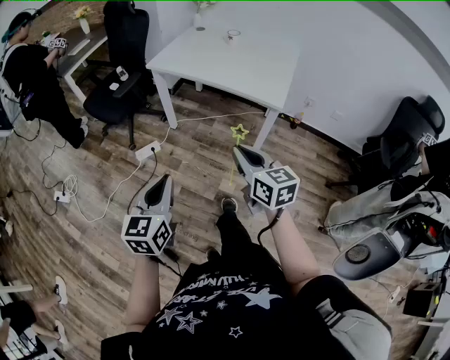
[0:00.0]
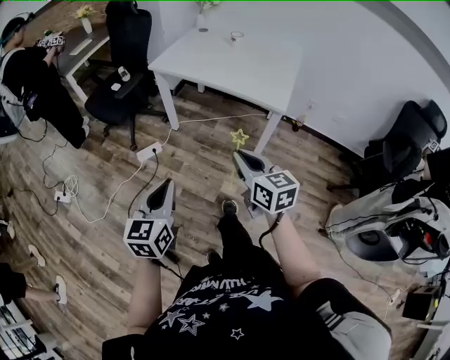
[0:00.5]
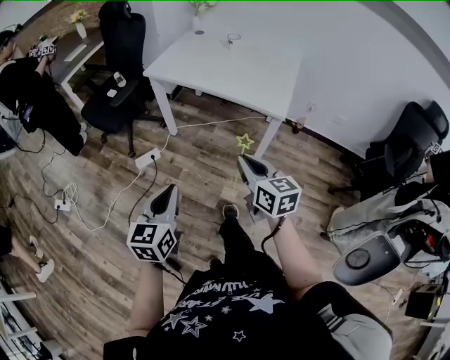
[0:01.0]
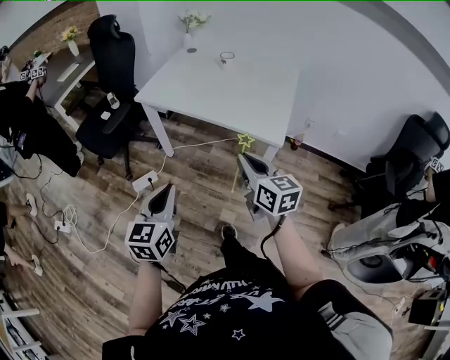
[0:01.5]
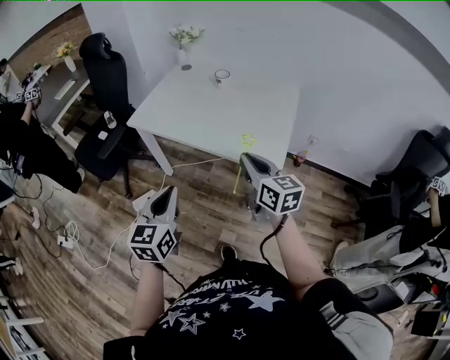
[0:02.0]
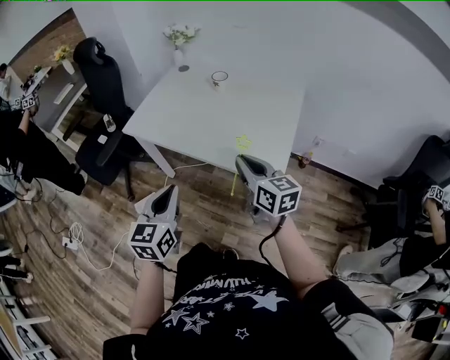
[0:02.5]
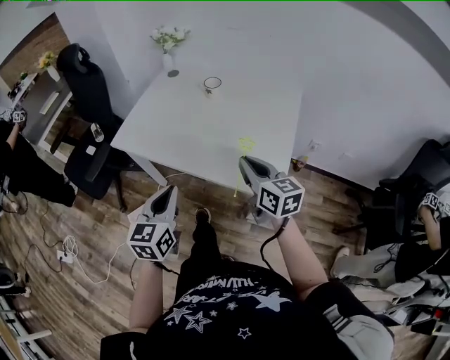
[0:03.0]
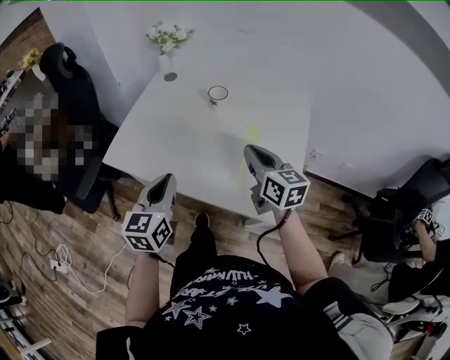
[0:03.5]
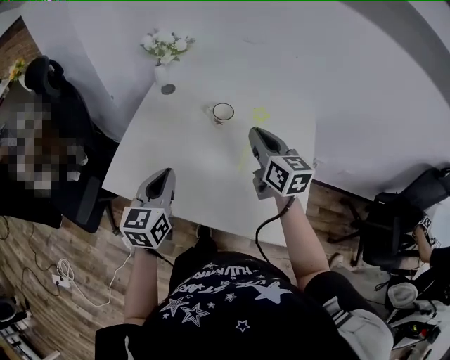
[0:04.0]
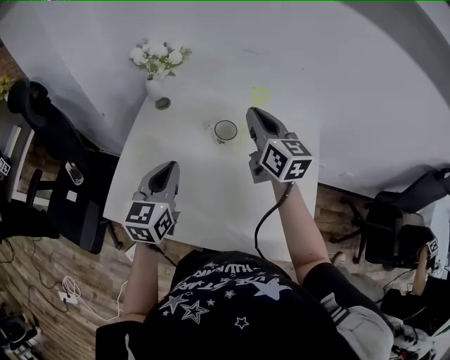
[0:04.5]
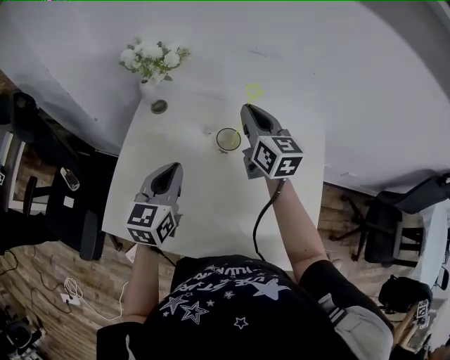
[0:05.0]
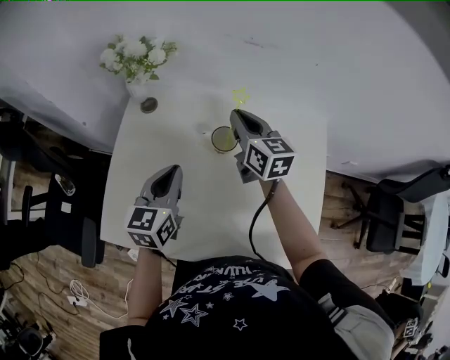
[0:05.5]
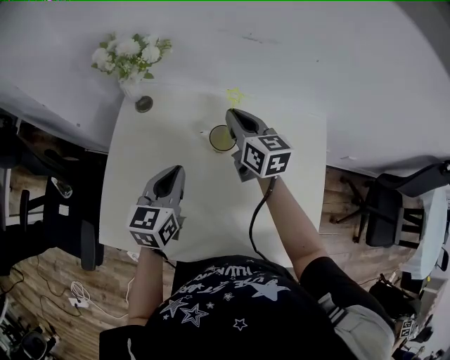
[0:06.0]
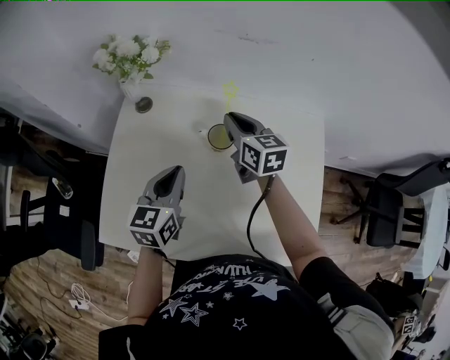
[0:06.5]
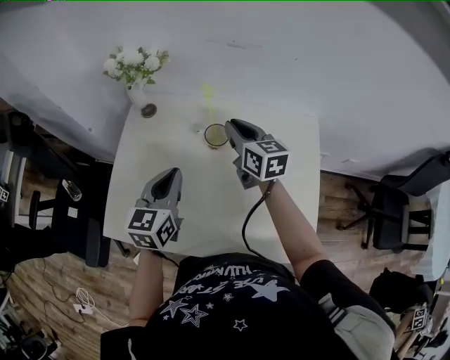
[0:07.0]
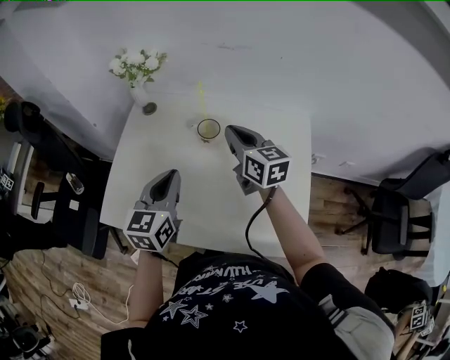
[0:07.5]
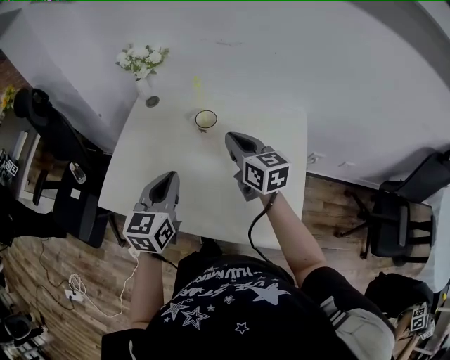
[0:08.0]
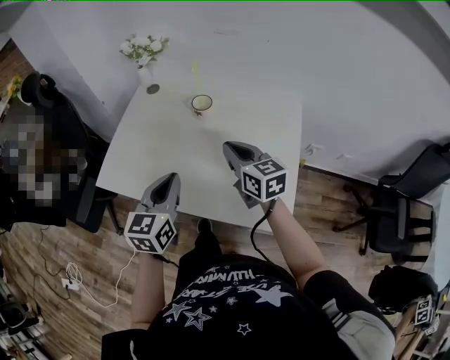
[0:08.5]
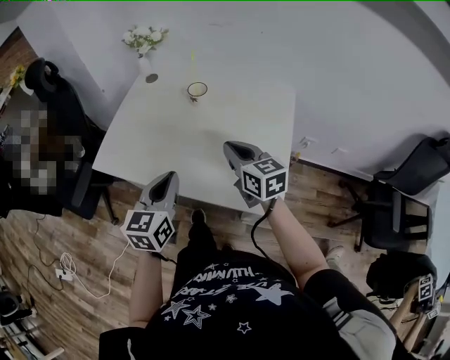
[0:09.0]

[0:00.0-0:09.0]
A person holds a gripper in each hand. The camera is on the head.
0:00.0 to 0:02.0: The two grippers go about 30 cm forward and to the right.
0:02.0 to 0:04.5: Both grippers are carried forward, some 50 cm.
0:04.5 to 0:07.0: The right gripper goes roughly 10 cm downward.
0:07.0 to 0:09.0: The two grippers go about 30 cm backward.

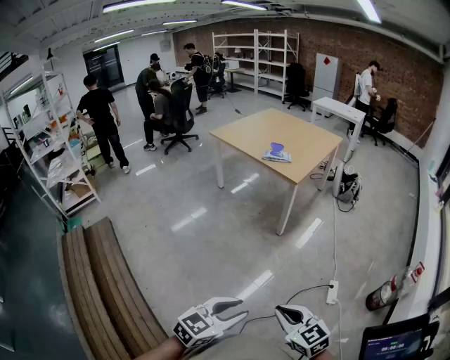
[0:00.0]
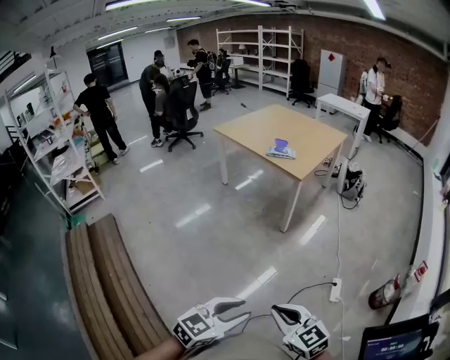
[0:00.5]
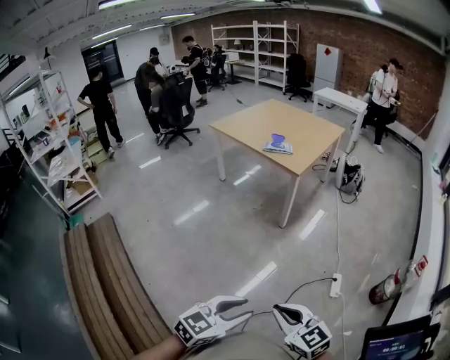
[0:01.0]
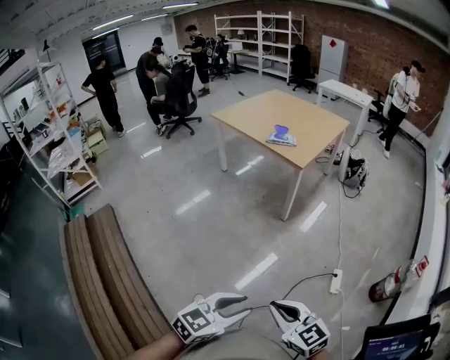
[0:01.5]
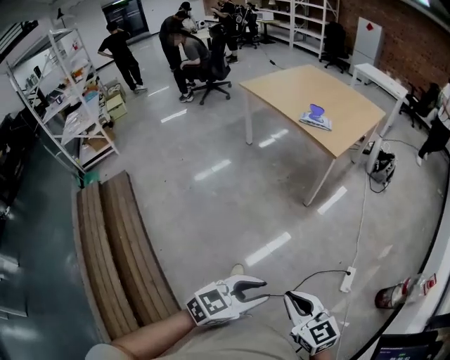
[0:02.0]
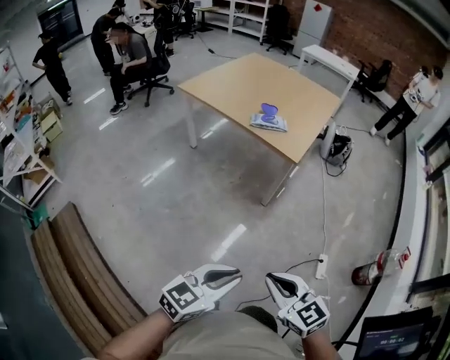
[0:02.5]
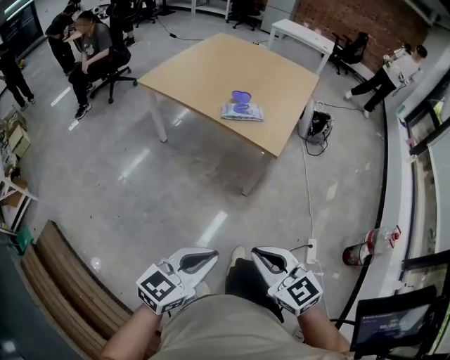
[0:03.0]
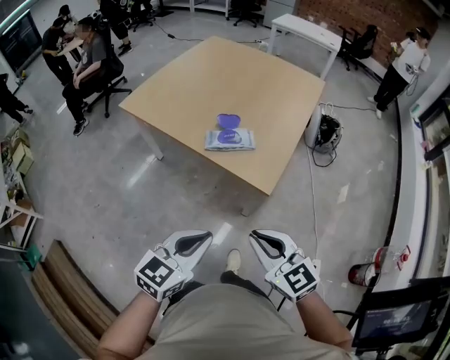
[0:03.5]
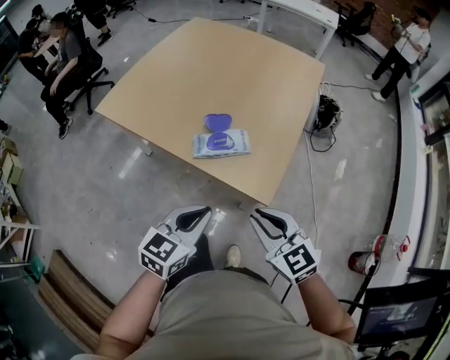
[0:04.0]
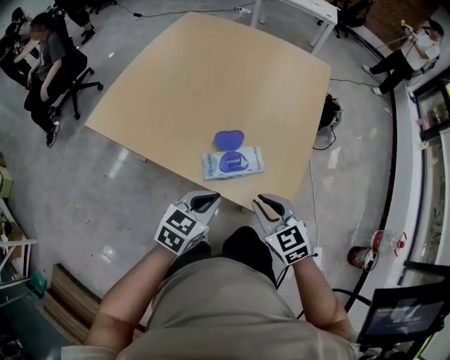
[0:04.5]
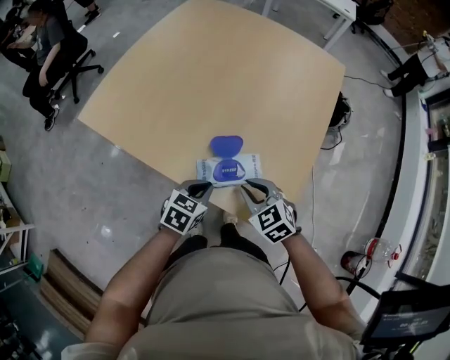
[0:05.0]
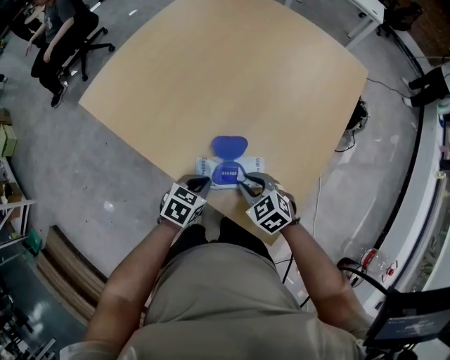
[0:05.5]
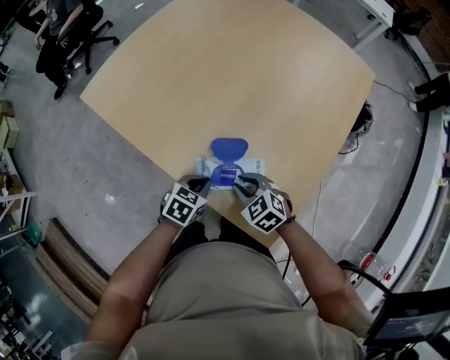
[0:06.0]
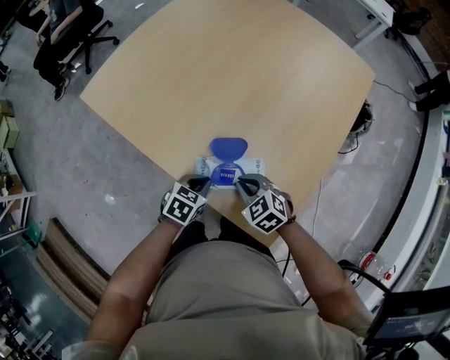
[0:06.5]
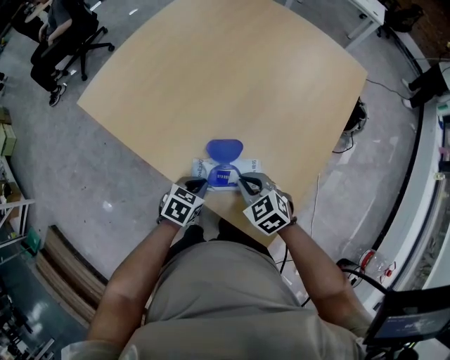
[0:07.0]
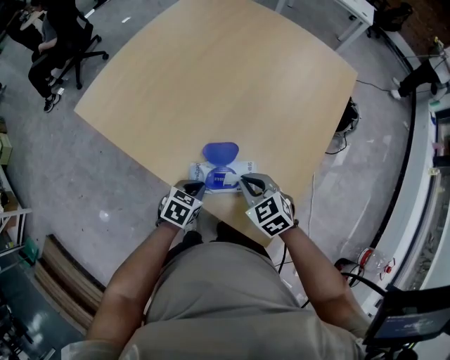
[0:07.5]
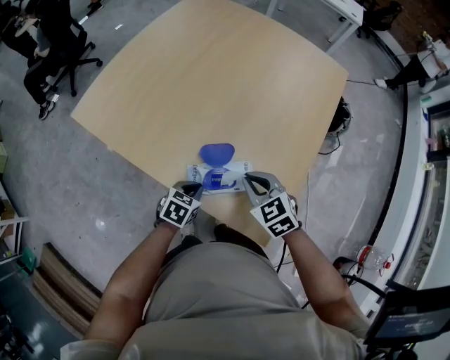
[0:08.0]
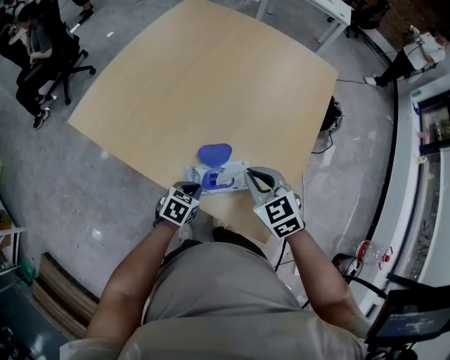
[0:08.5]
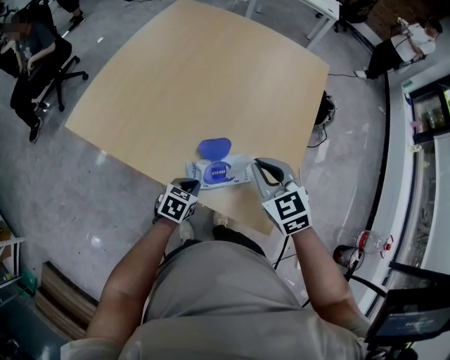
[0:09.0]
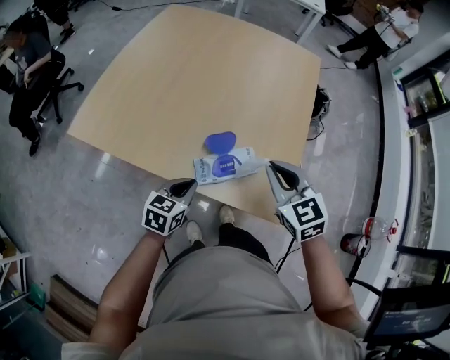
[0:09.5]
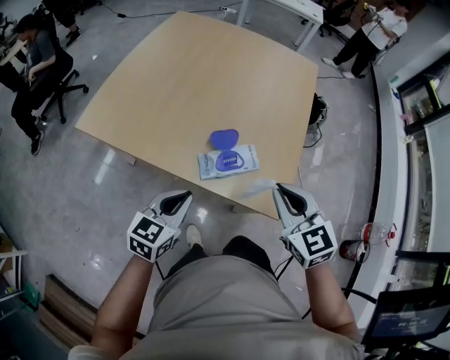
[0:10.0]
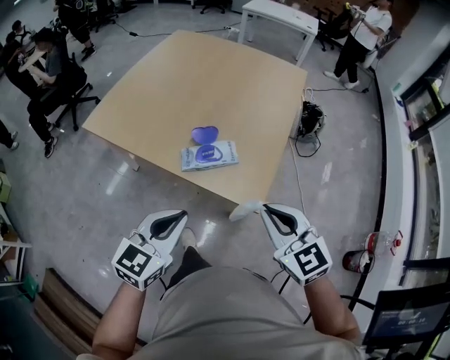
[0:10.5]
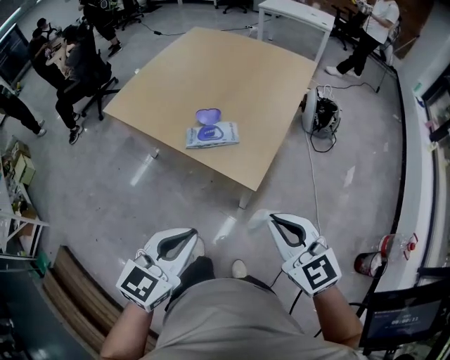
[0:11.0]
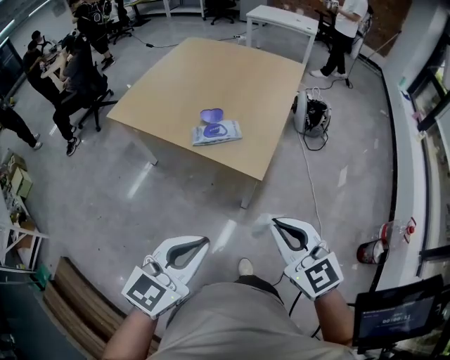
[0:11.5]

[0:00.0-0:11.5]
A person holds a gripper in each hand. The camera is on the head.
0:00.0 to 0:02.0: The right gripper goes roughly 10 cm forward and to the left. Meanwhile the left gripper goes some 10 cm forward.
0:02.0 to 0:04.0: The two grippers travel together, forward, approximately 80 cm. The left gripper closes.
0:04.0 to 0:06.0: Both grippers move forward and downward, some 35 cm. The left gripper points its fingers about 30 degrees further downward, while the right gripper rotates roughly 40 degrees.
0:06.0 to 0:07.5: The right gripper travels upward by approximately 5 cm.
0:07.5 to 0:09.5: The right gripper shifts approximately 15 cm upward, and turns by about 30 degrees, while the left gripper is displaced upward and to the left by approximately 10 cm.
0:09.5 to 0:11.5: The two grippers travel together, backward, about 50 cm. The left gripper travels upward by about 25 cm, and swivels some 20 degrees.

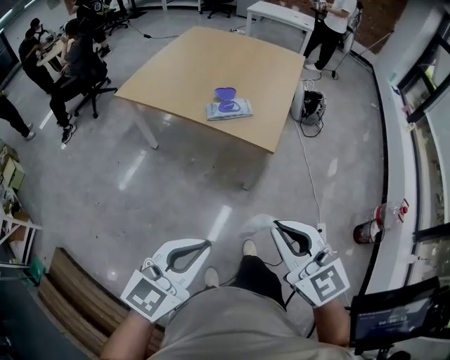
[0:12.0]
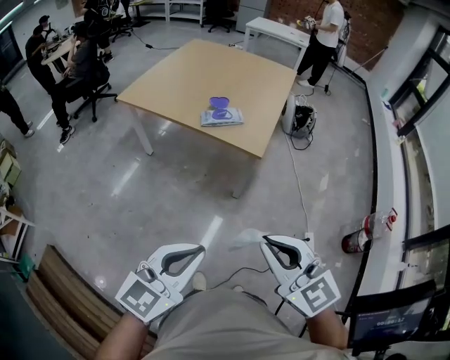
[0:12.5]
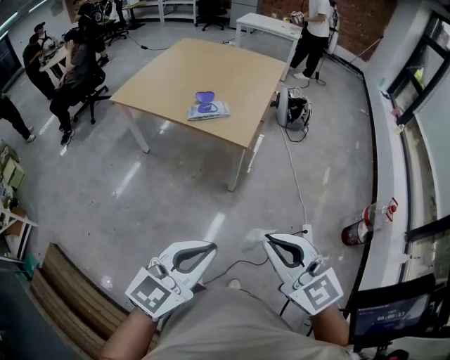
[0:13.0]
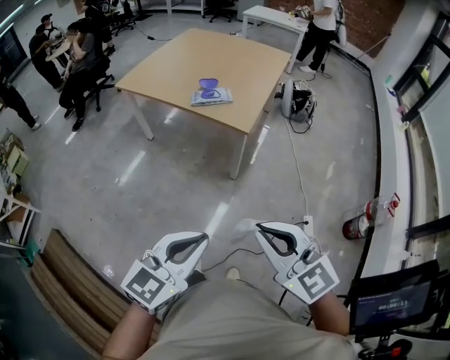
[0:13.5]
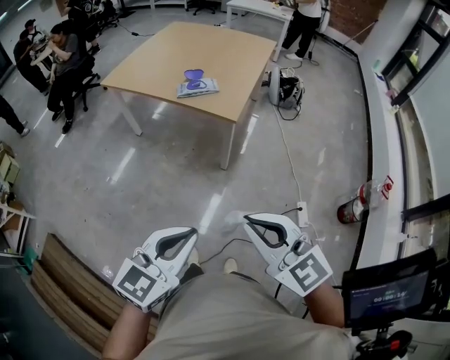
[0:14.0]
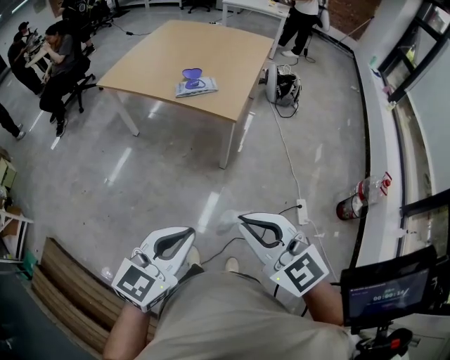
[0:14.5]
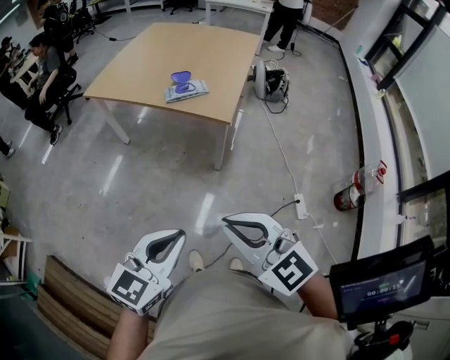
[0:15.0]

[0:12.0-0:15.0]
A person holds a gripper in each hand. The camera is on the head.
0:12.0 to 0:13.5: Both grippers move backward and to the right, approximately 20 cm.
0:13.5 to 0:15.0: The right gripper is displaced to the left by about 10 cm, while the left gripper heads to the left and forward, covering roughly 10 cm.

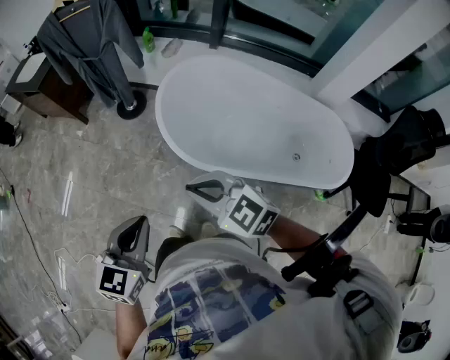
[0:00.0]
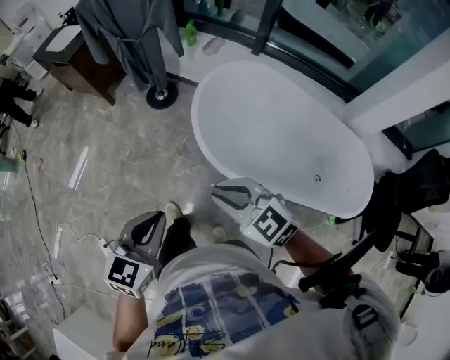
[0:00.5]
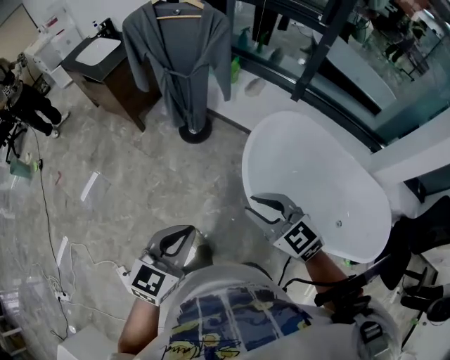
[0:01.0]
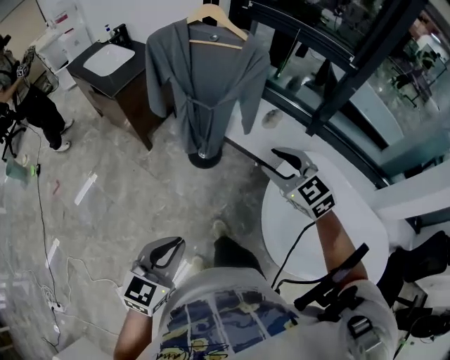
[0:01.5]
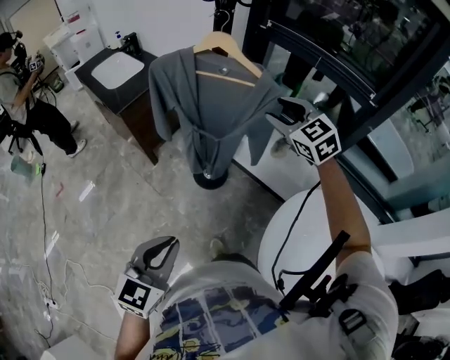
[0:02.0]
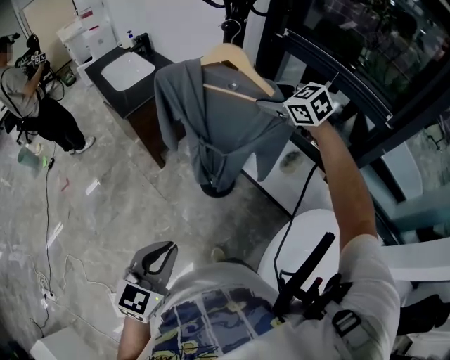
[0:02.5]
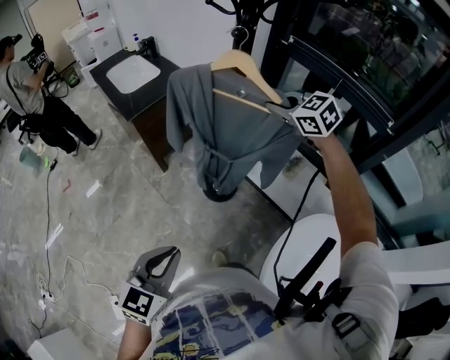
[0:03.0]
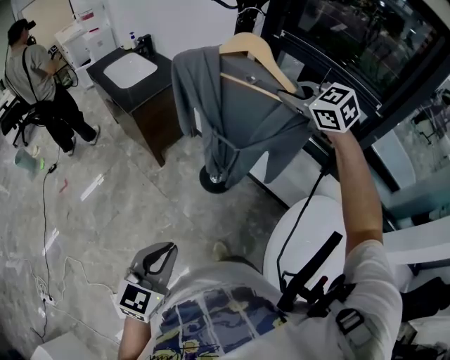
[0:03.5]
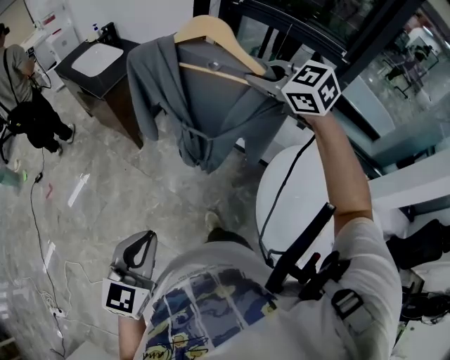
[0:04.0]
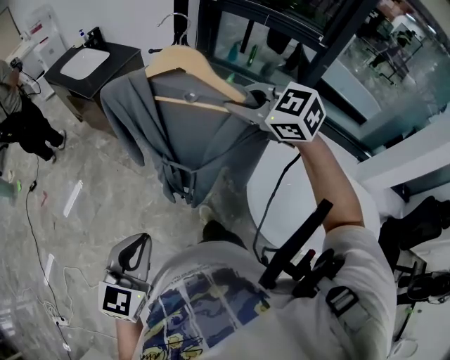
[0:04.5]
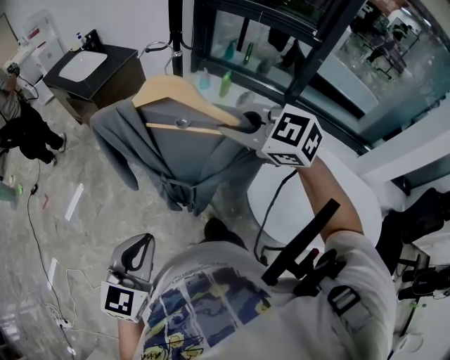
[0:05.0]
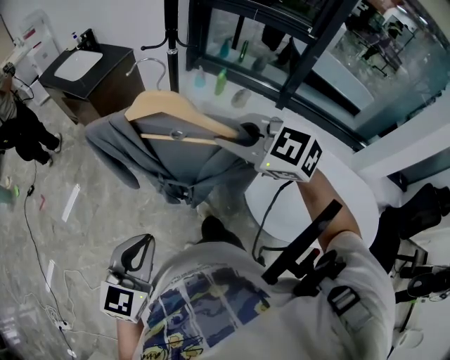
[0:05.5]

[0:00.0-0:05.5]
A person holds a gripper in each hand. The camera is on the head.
0:00.0 to 0:02.0: Both grippers are carried forward, about 60 cm. The right gripper rotates approximately 20 degrees, and opens.
0:02.0 to 0:03.5: The right gripper moves upward, some 5 cm, travels forward and back again, roughly 15 cm each way, and closes its fingers.
0:03.5 to 0:05.5: The right gripper travels backward by approximately 40 cm. The left gripper shifts about 20 cm backward.
